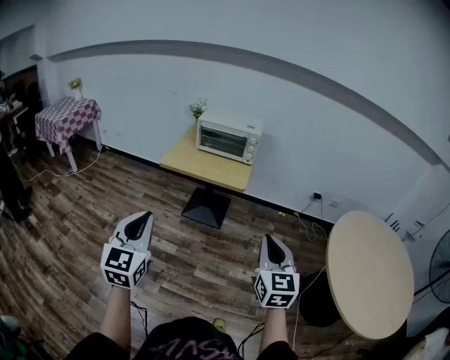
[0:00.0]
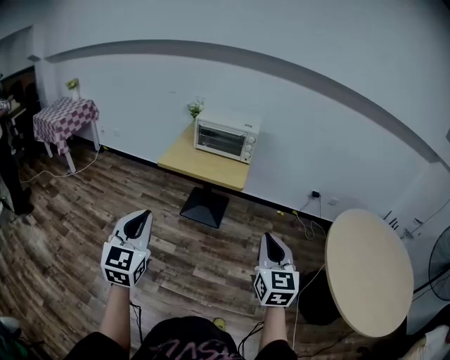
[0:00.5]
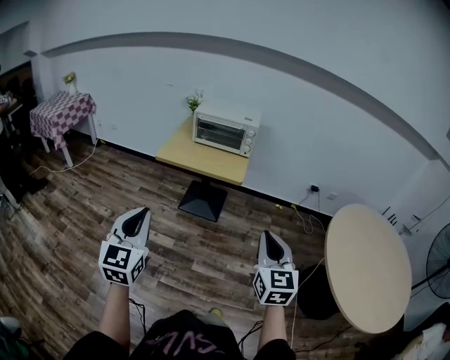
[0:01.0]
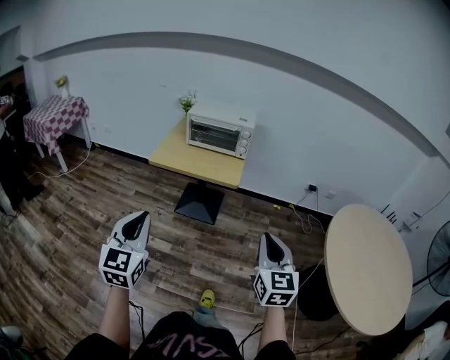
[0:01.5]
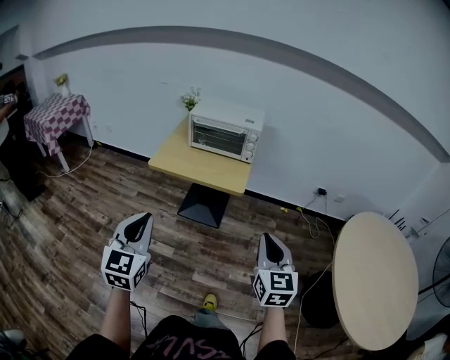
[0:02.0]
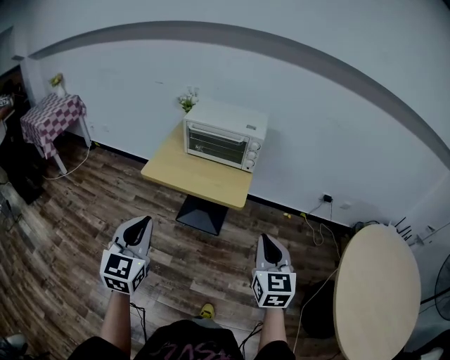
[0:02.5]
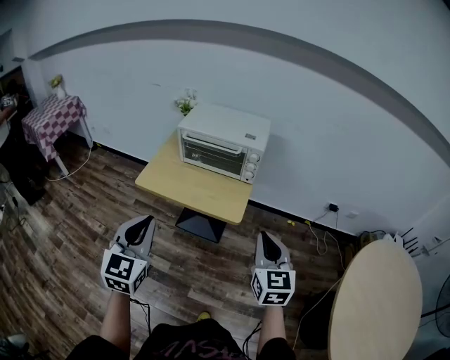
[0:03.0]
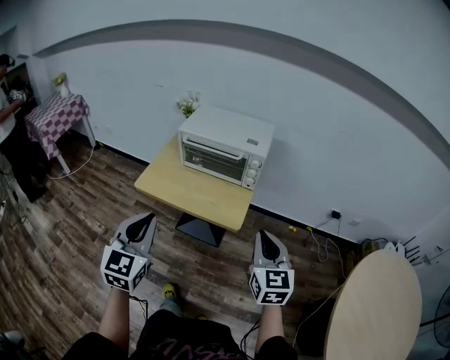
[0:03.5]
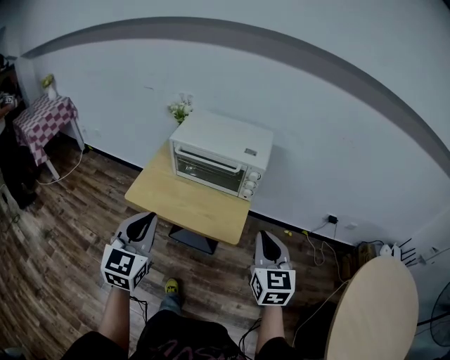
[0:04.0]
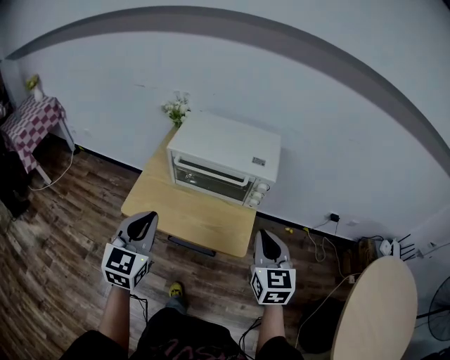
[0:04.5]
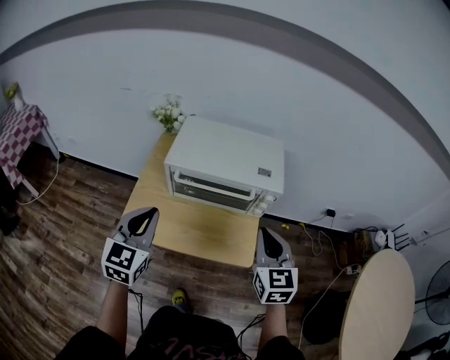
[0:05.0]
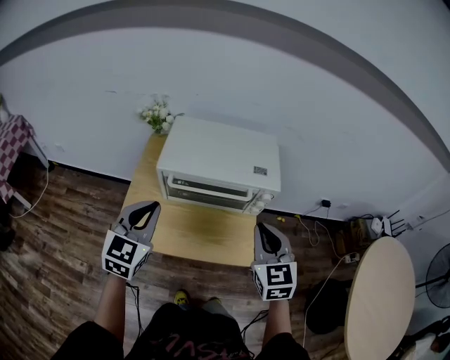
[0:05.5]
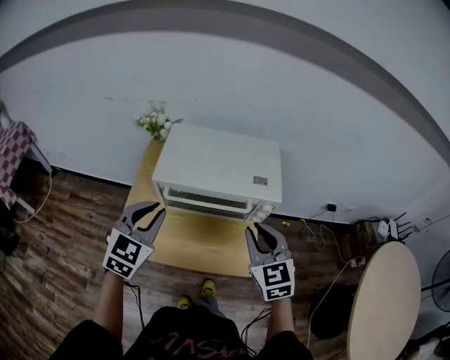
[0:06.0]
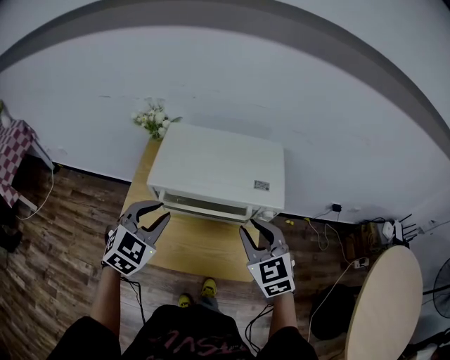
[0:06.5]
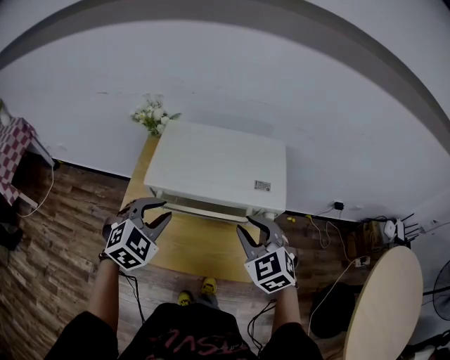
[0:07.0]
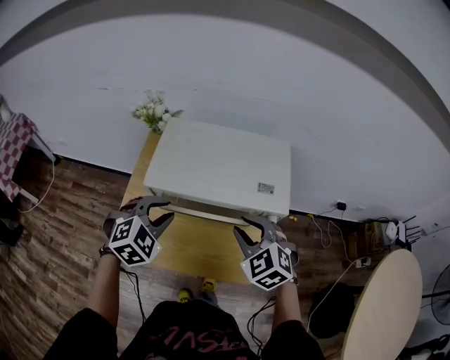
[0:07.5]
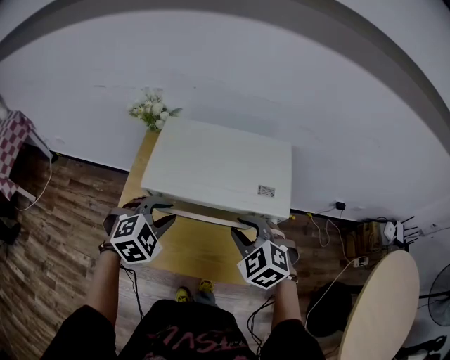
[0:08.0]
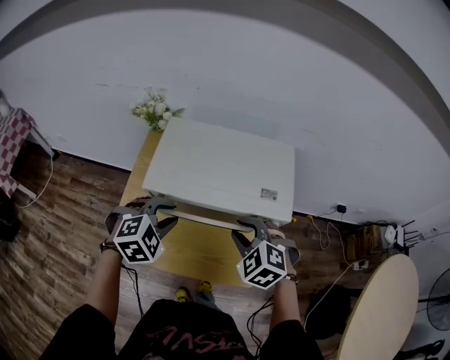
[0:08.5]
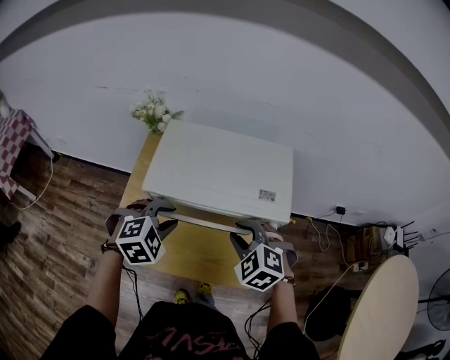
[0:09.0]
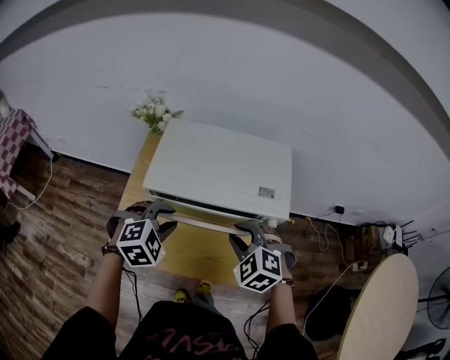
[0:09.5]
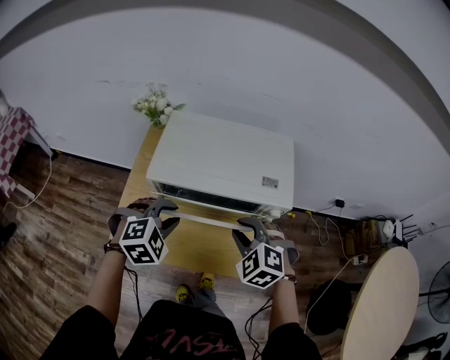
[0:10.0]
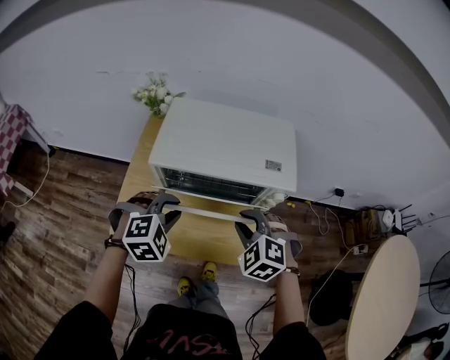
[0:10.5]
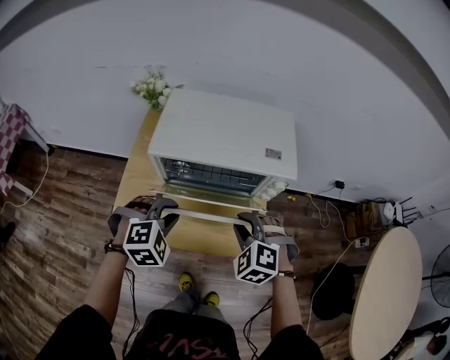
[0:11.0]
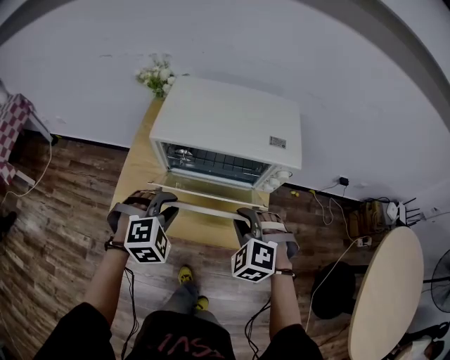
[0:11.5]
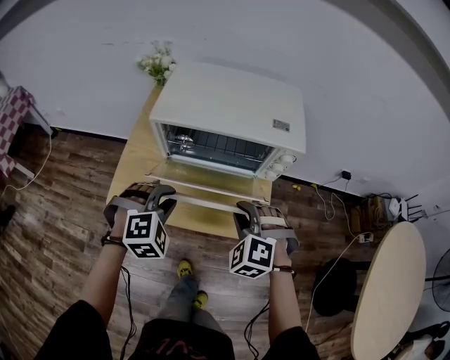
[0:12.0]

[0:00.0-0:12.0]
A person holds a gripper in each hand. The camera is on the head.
0:00.0 to 0:02.0: The grippers both shift forward by about 15 cm.
0:02.0 to 0:04.0: Both grippers travel together forward, about 35 cm.
0:04.0 to 0:06.0: The left gripper is displaced forward by roughly 30 cm, and rotates roughly 30 degrees. The right gripper is displaced forward and to the left by some 25 cm.
0:06.0 to 0:08.0: The right gripper heads forward and downward, covering about 10 cm, and swivels about 40 degrees, while the left gripper goes roughly 10 cm downward and forward, and swivels approximately 40 degrees.
0:08.0 to 0:10.0: The grippers make only small movements.
0:10.0 to 0:12.0: Both grippers move backward and downward, about 10 cm.

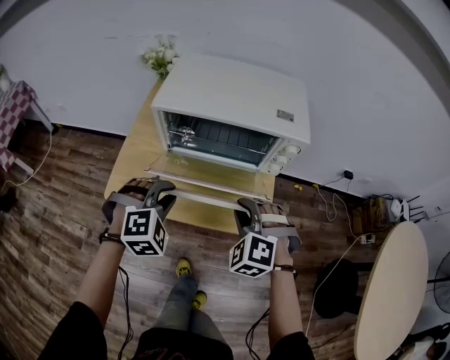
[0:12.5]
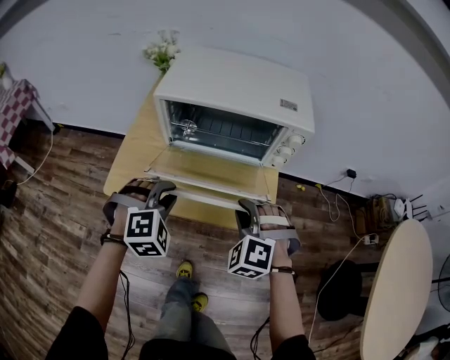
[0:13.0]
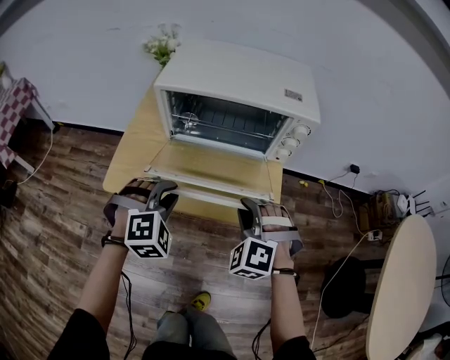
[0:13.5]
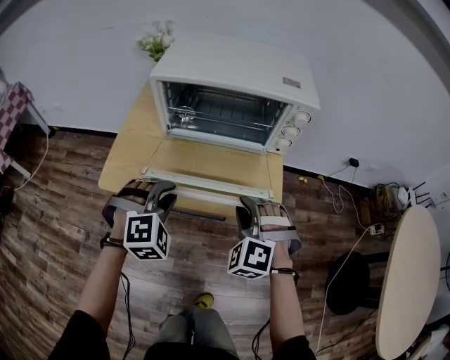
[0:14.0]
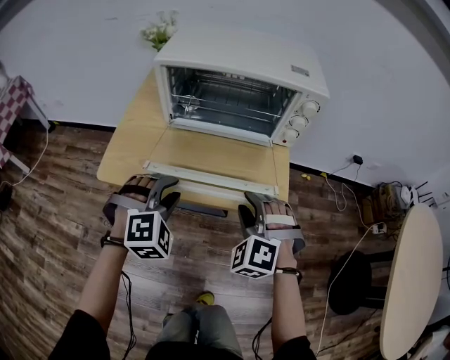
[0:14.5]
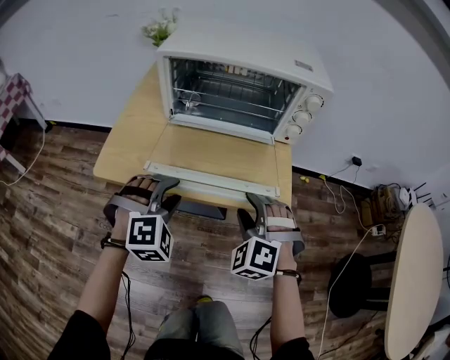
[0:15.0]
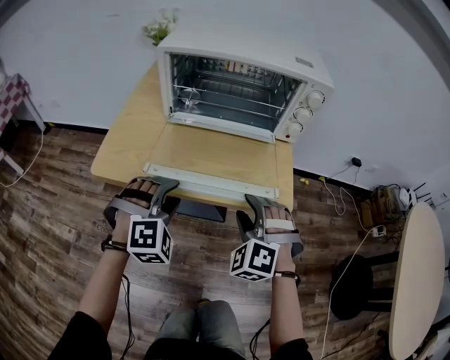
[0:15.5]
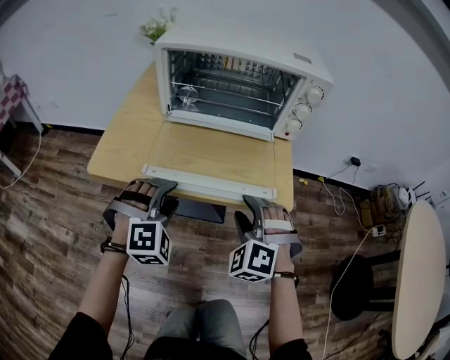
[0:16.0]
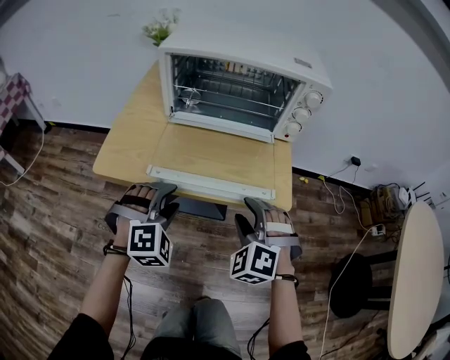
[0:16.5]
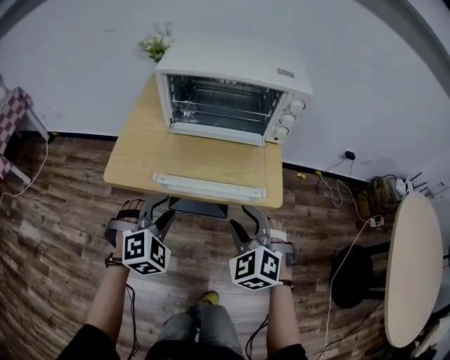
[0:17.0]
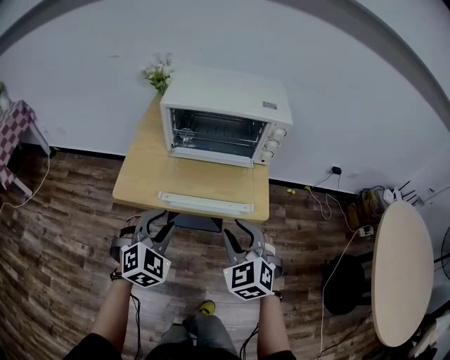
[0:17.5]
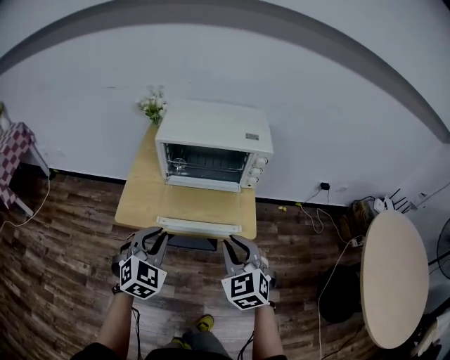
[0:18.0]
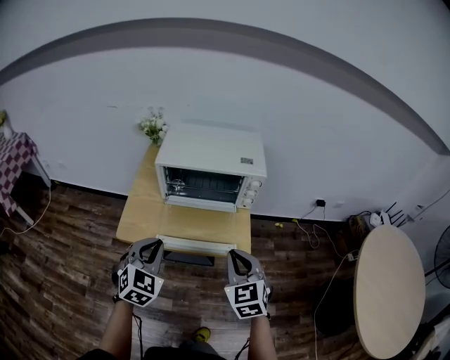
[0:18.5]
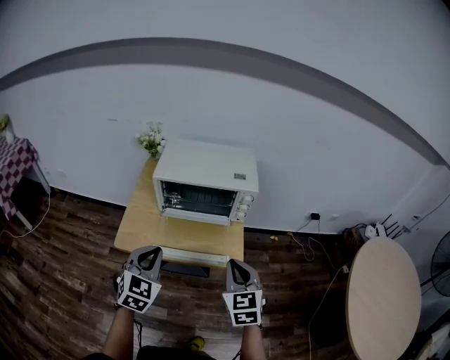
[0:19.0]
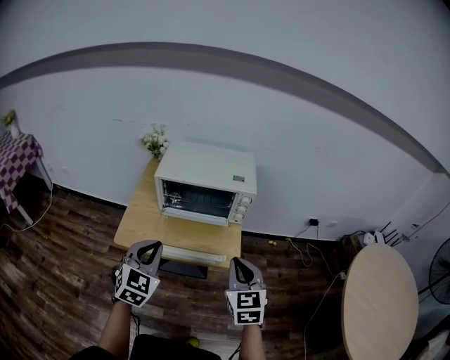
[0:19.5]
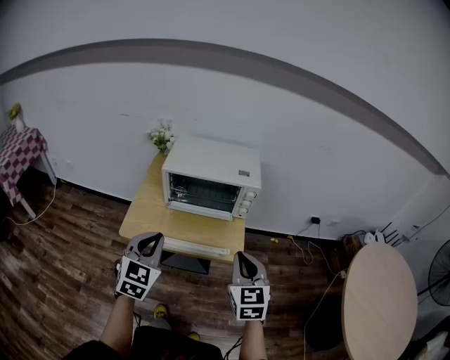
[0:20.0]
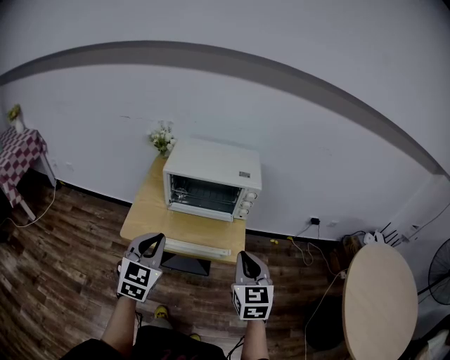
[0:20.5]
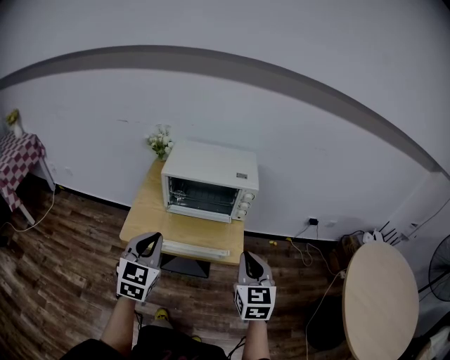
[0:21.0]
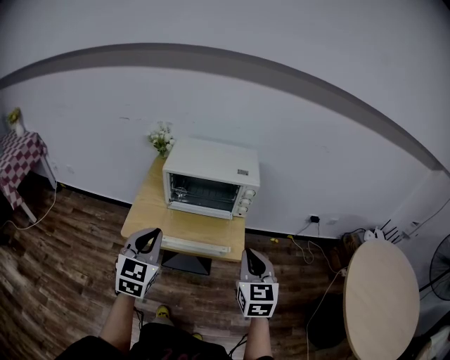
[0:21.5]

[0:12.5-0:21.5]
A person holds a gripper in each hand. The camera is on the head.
0:12.5 to 0:14.5: The two grippers go roughly 10 cm downward.
0:14.5 to 0:17.0: Both grippers travel together backward, some 5 cm. The right gripper reaches approximately 5 cm downward, then returns, and changes its angle by roughly 20 degrees.
0:17.0 to 0:19.5: The two grippers go about 25 cm upward. The right gripper swivels roughly 40 degrees, and closes. The left gripper rotates about 40 degrees, and closes.
0:19.5 to 0:21.5: The left gripper changes place by roughly 5 cm.

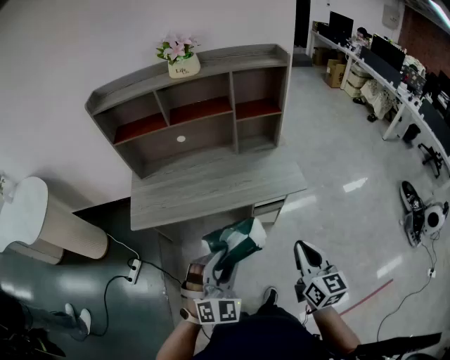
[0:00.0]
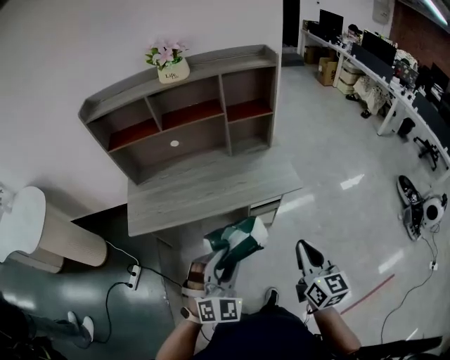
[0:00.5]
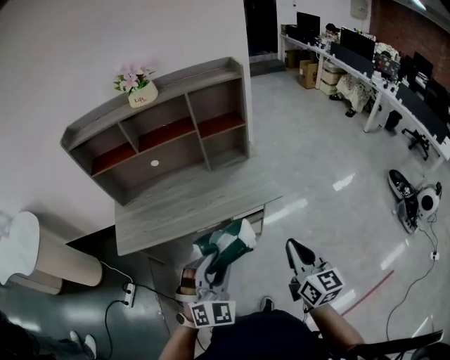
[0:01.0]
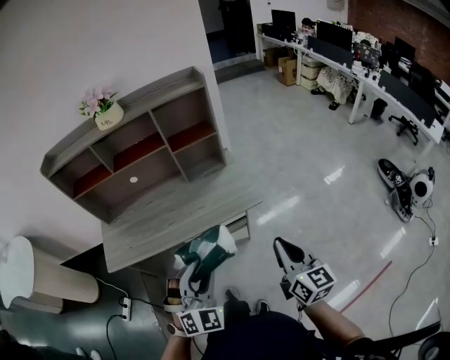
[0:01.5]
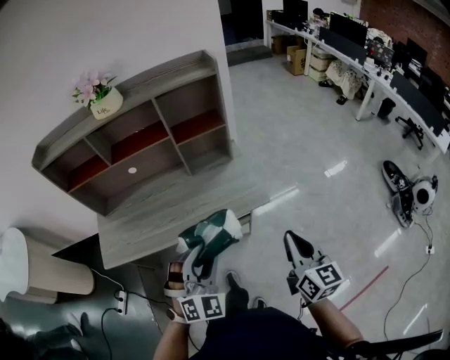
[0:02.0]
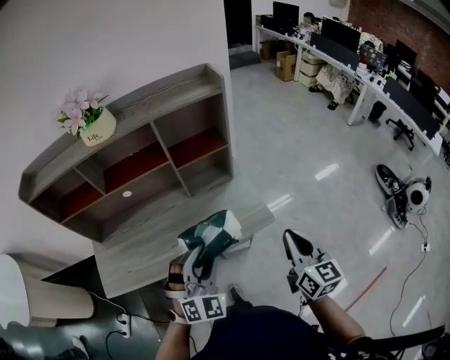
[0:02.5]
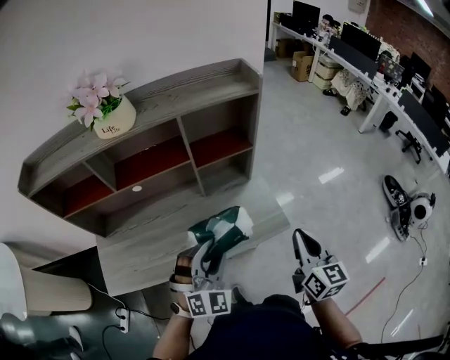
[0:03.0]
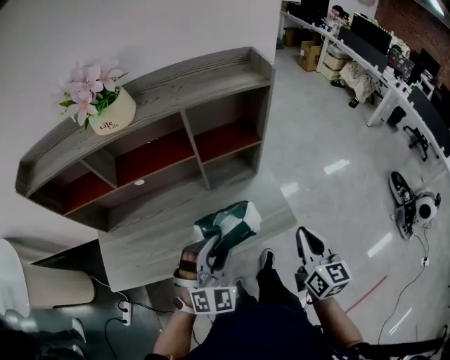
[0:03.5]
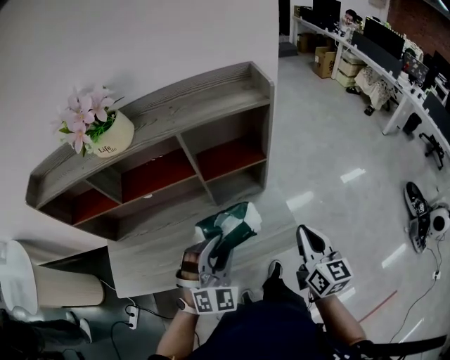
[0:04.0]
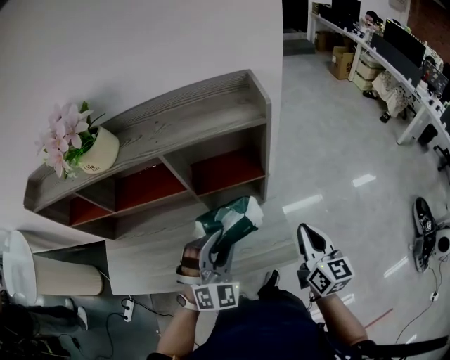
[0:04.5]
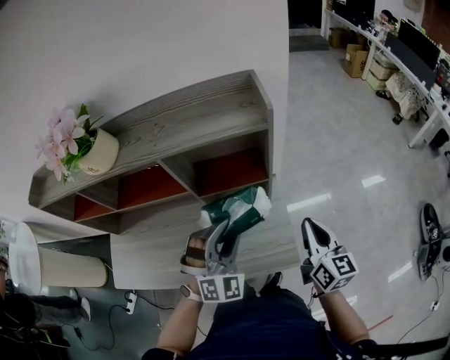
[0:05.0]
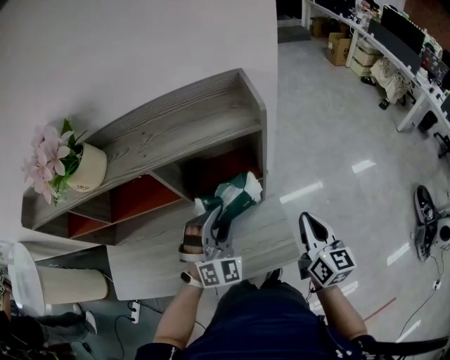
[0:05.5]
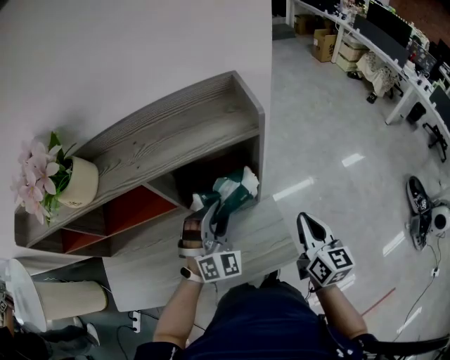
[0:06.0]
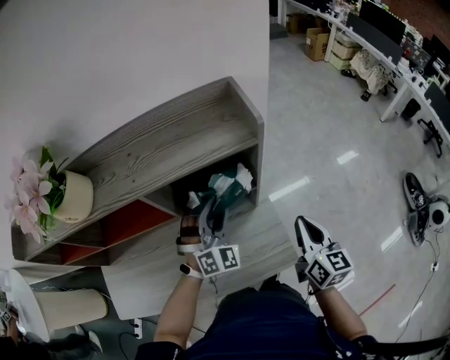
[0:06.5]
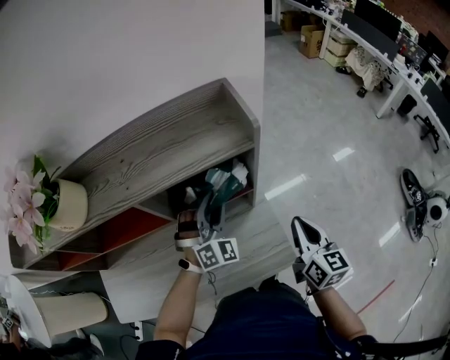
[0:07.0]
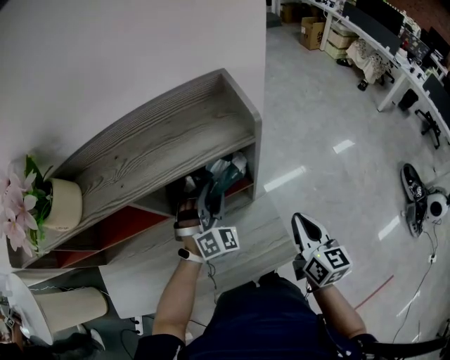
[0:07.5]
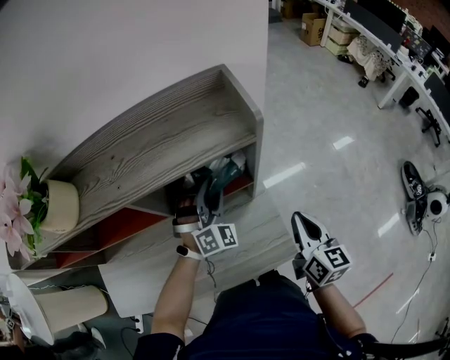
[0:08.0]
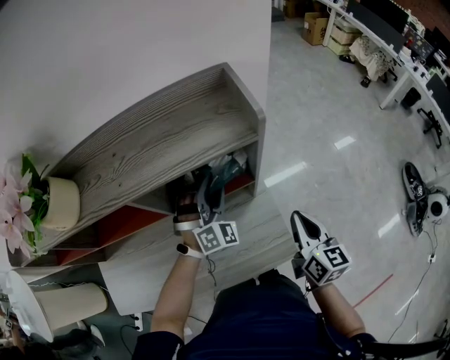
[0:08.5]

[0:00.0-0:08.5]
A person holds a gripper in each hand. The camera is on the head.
0:00.0 to 0:02.0: The left gripper travels forward and to the right by roughly 20 cm; the right gripper heads to the right and forward, covering roughly 20 cm.
0:02.0 to 0:04.0: The two grippers go about 25 cm forward.
0:04.0 to 0:06.5: The left gripper moves forward, some 25 cm, while the right gripper goes roughly 15 cm forward.
0:06.5 to 0:08.5: The left gripper heads forward, covering about 5 cm.
